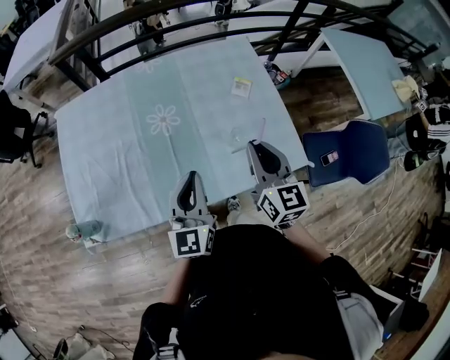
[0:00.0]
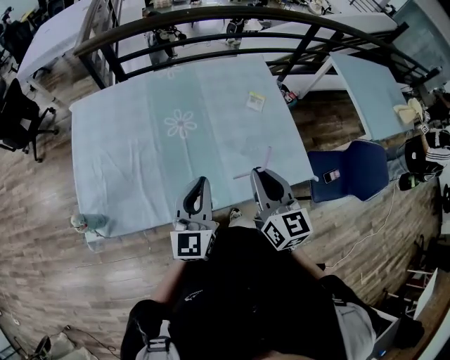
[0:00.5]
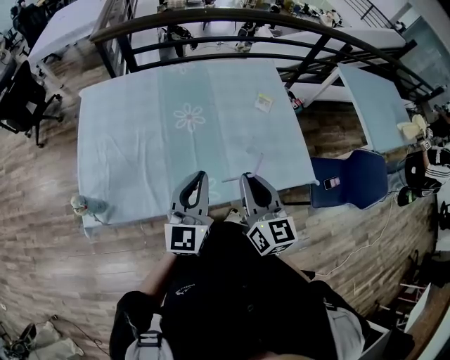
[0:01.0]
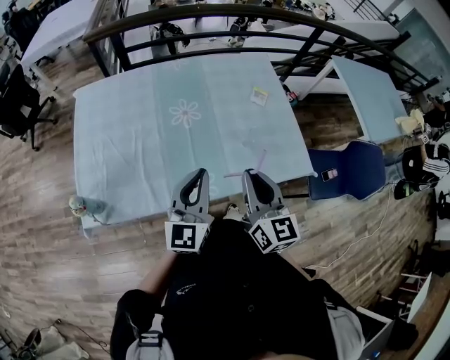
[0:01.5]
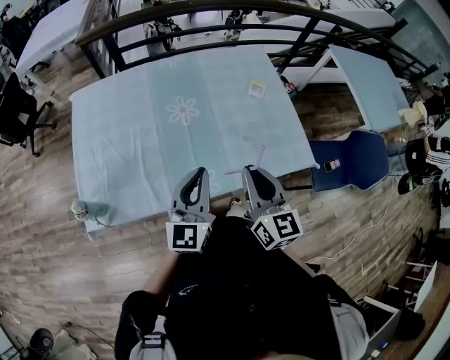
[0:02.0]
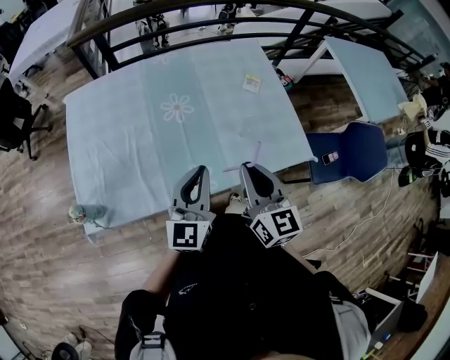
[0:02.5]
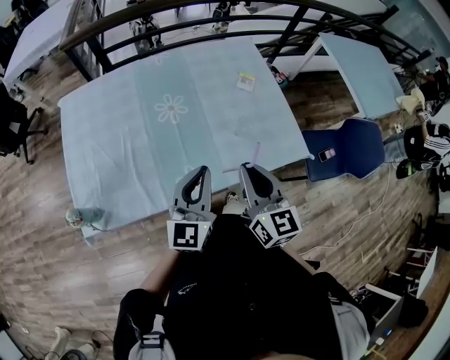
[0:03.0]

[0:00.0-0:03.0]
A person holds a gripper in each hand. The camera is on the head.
0:00.0 to 0:01.5: The left gripper goes roughly 5 cm to the left and backward; the right gripper is displaced backward and to the left by about 15 cm.
0:01.5 to 0:03.0: There are only small adjustments of the grippers.

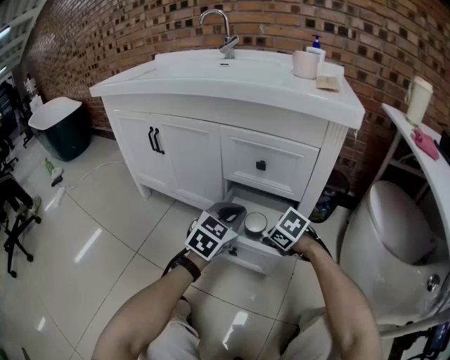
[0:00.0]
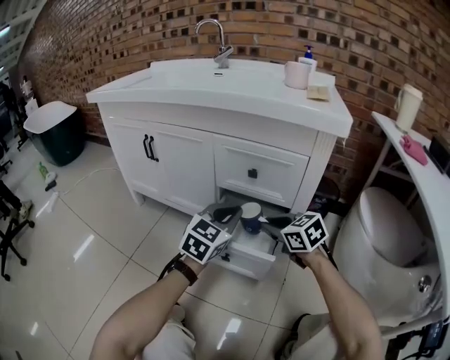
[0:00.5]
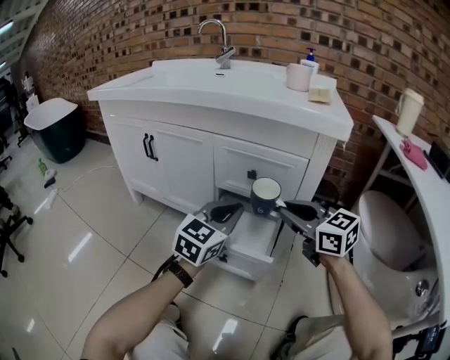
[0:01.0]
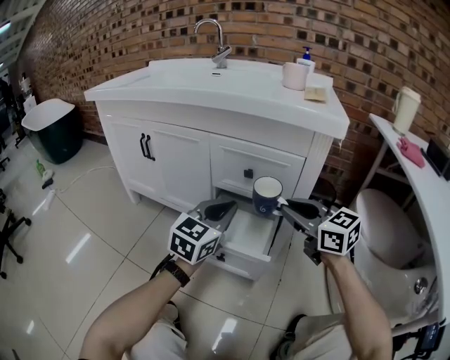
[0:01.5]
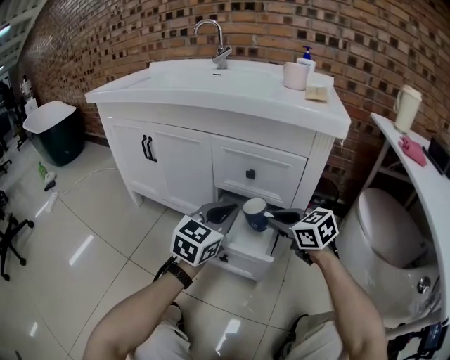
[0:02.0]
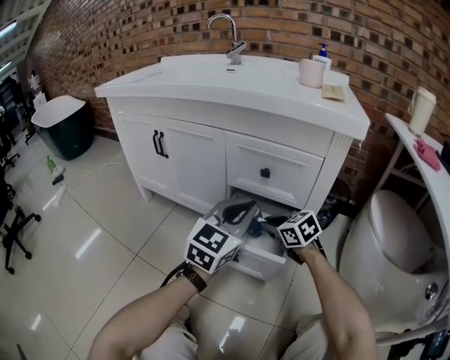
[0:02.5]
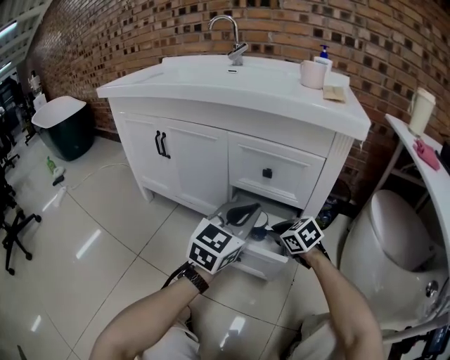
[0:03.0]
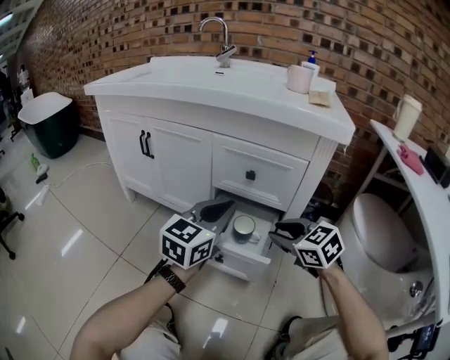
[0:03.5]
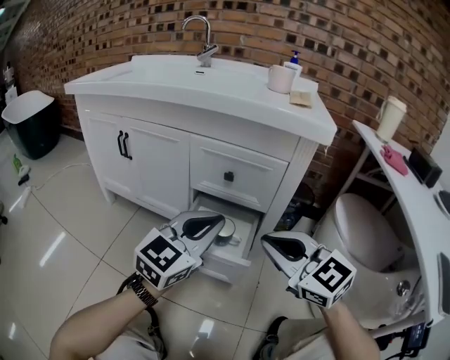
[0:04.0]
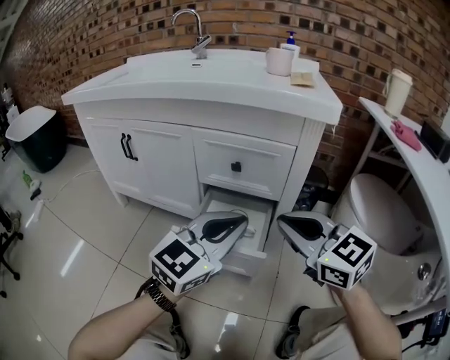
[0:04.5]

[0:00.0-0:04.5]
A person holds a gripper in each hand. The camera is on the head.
0:00.0 to 0:02.0: The right gripper heads upward, covering approximately 15 cm, and tips its fingers upward by approximately 40 degrees, while the left gripper travels upward by approximately 5 cm.
0:02.0 to 0:04.5: The right gripper travels upward and backward by about 15 cm. Meanwhile the left gripper travels backward and upward by approximately 10 cm.

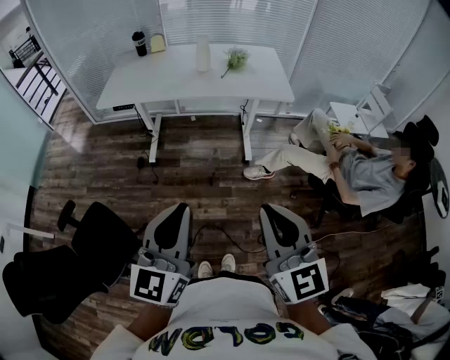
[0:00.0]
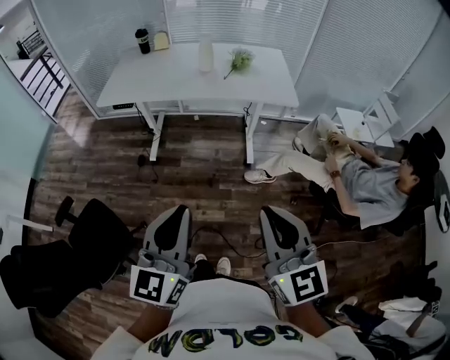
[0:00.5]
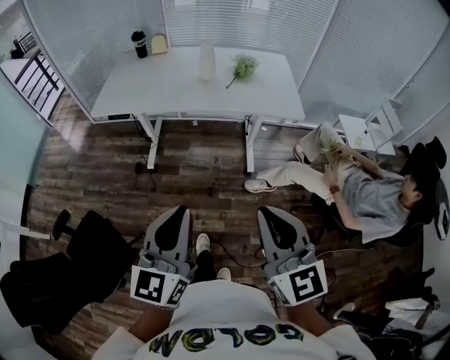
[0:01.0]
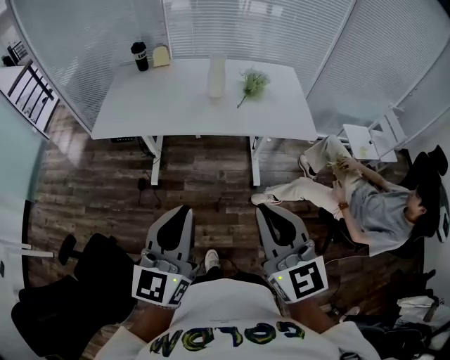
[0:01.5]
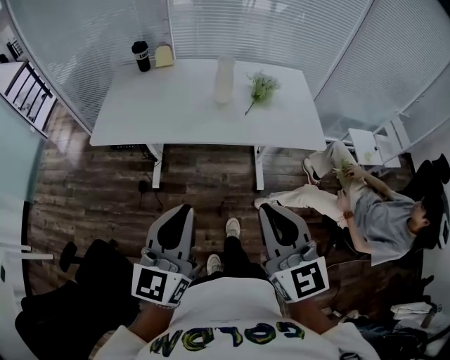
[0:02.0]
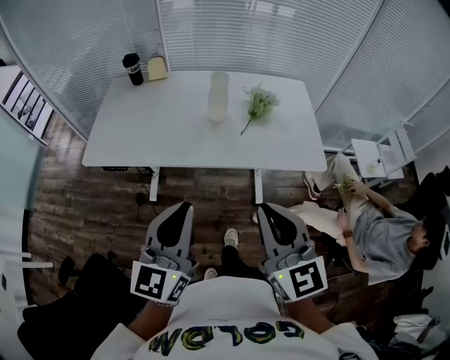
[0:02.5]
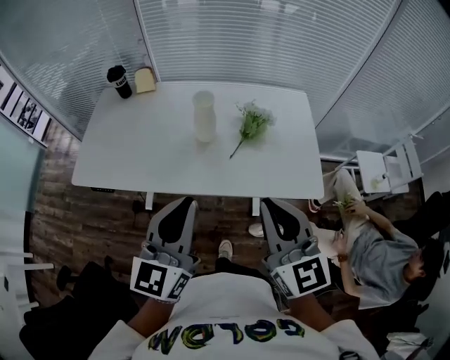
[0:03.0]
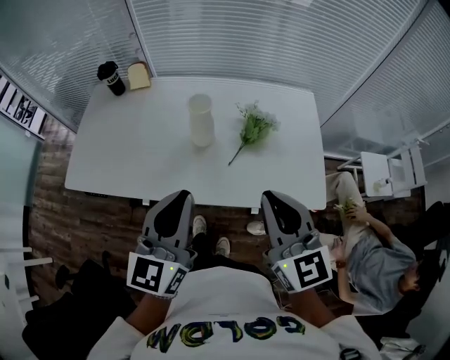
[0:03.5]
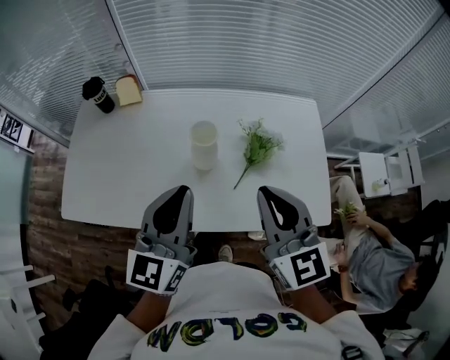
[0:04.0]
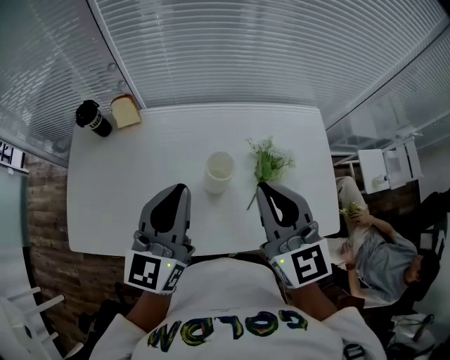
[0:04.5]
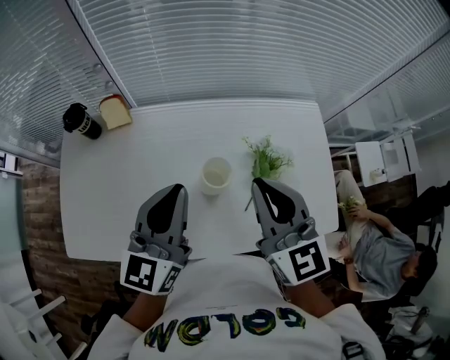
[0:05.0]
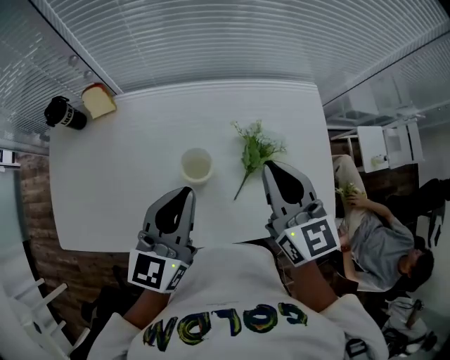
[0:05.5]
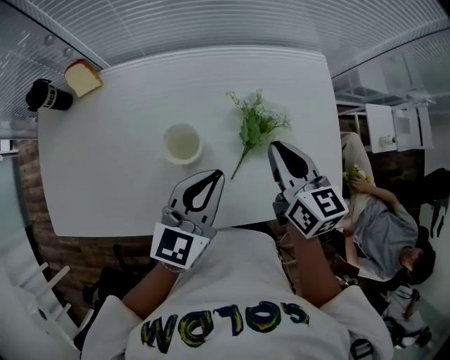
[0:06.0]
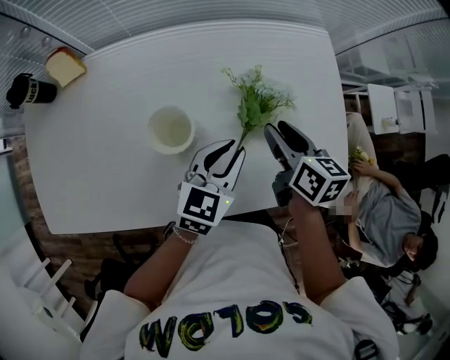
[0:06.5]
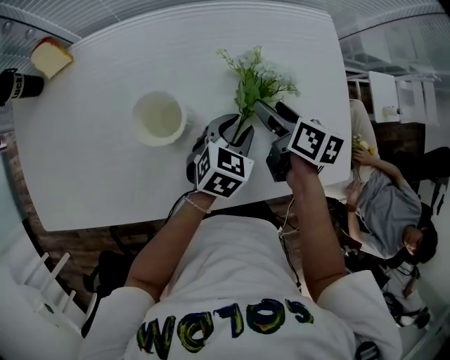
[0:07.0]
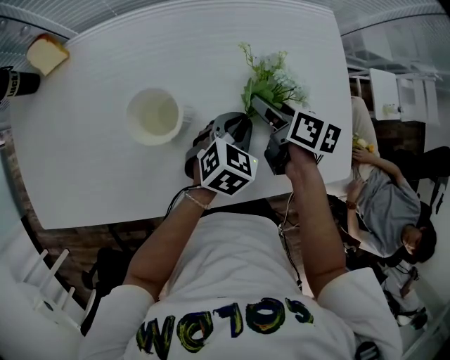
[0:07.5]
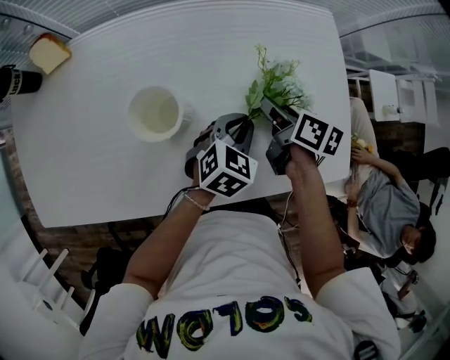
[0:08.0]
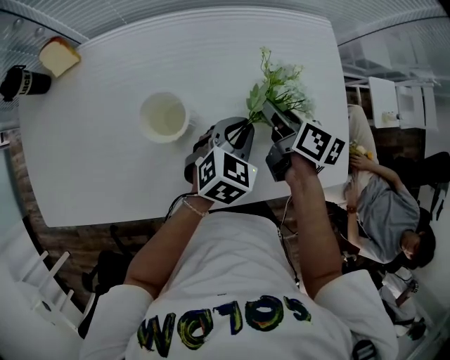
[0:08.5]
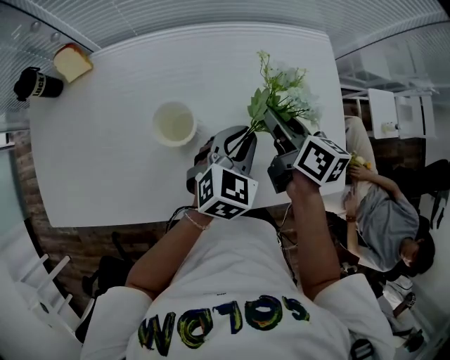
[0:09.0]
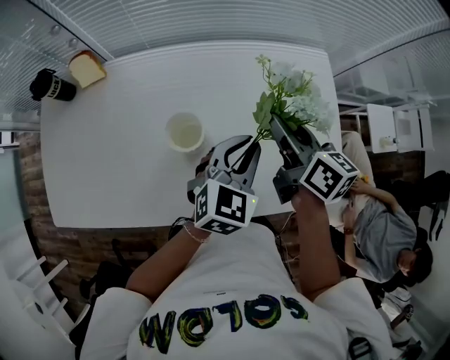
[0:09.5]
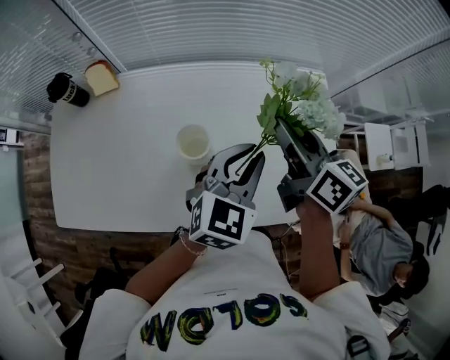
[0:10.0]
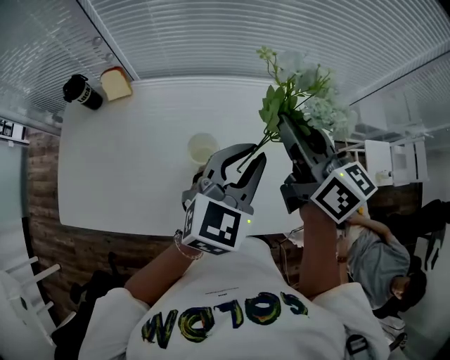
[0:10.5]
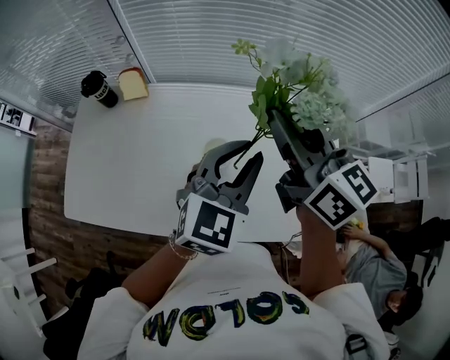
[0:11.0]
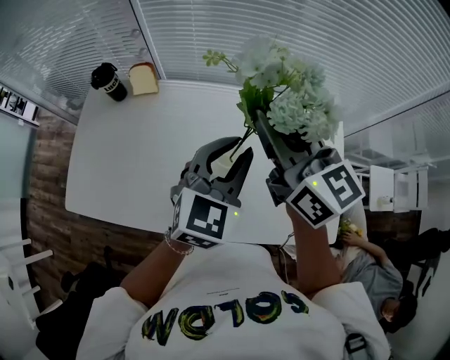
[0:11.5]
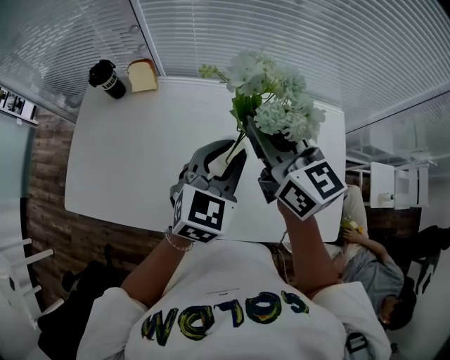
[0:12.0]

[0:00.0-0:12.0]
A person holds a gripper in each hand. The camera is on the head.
0:00.0 to 0:02.0: Both grippers move forward, roughly 35 cm.
0:02.0 to 0:04.0: Both grippers are carried forward, some 50 cm.
0:04.0 to 0:06.0: The left gripper heads downward, forward and to the right, covering about 20 cm, and changes its angle by some 30 degrees; the right gripper is displaced downward and forward by approximately 25 cm, and rotates some 30 degrees.
0:06.0 to 0:08.0: The right gripper moves downward, about 15 cm, changes its angle by approximately 30 degrees, and opens its fingers. Meanwhile the left gripper moves downward and to the right, some 20 cm, turns by about 30 degrees, and opens, then closes once more.
0:08.0 to 0:10.0: The two grippers go about 25 cm upward. The left gripper rotates some 20 degrees, while the right gripper changes its angle by roughly 30 degrees.
0:10.0 to 0:12.0: The left gripper moves to the left, roughly 15 cm. The right gripper moves to the left and upward, roughly 20 cm, and turns by roughly 30 degrees.

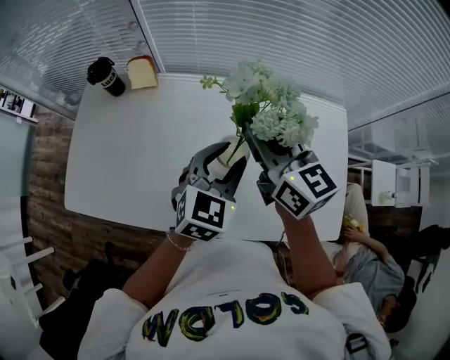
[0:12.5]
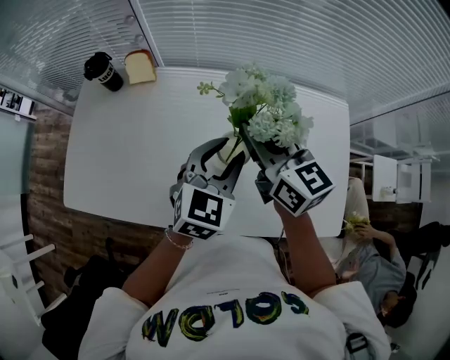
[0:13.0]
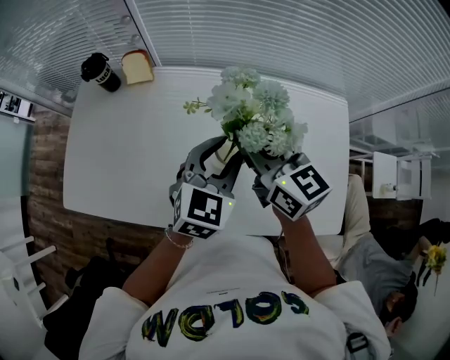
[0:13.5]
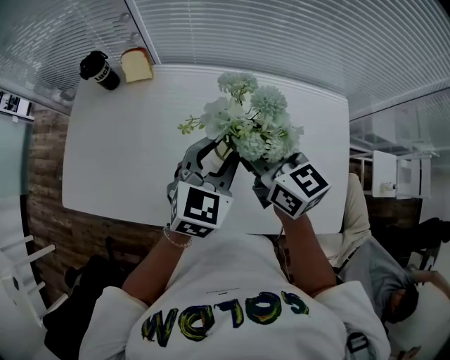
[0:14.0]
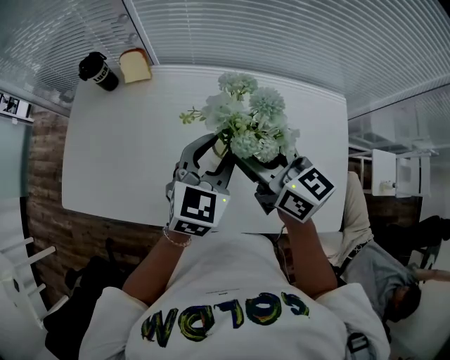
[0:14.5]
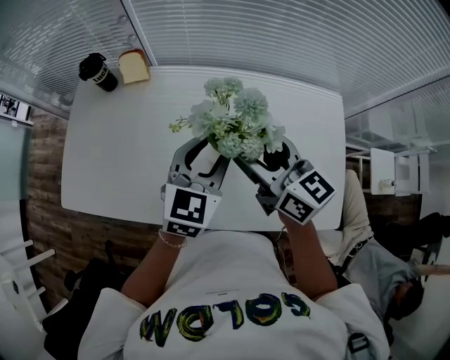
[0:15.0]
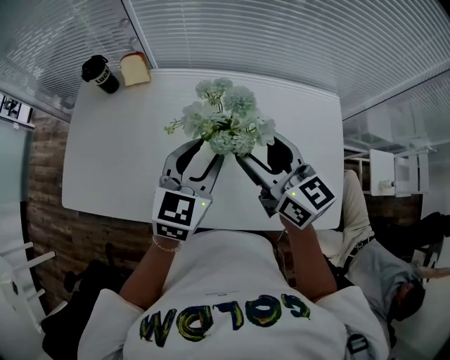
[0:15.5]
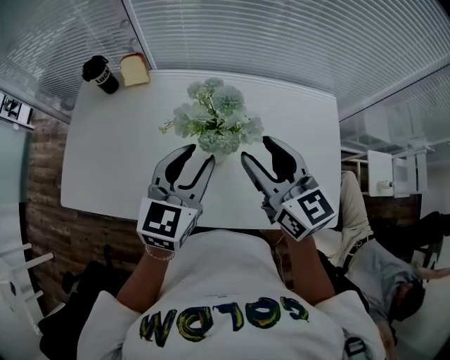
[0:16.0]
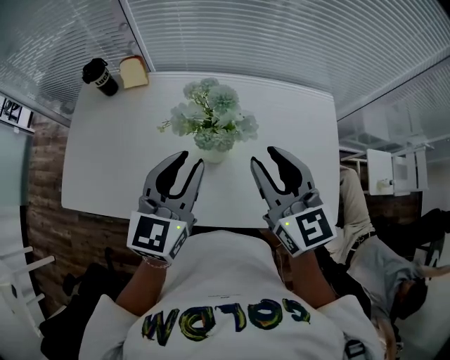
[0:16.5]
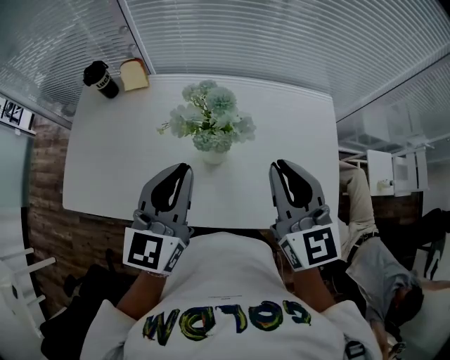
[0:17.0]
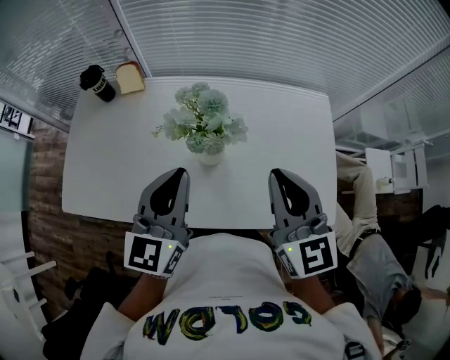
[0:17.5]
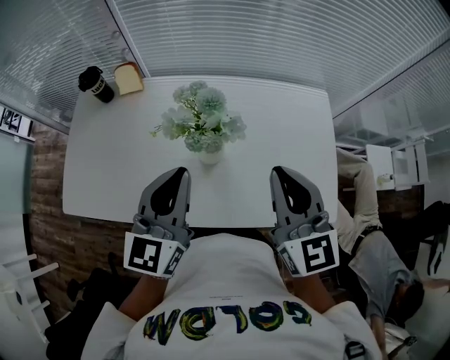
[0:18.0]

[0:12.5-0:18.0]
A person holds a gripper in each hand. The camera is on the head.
0:12.5 to 0:14.5: The right gripper changes place by approximately 5 cm, and opens its fingers.
0:14.5 to 0:16.0: The grippers both shift backward by about 5 cm.
0:16.0 to 0:18.0: The left gripper is displaced upward by approximately 5 cm, and closes its fingers; the right gripper moves backward and to the right, some 10 cm, and closes its fingers.

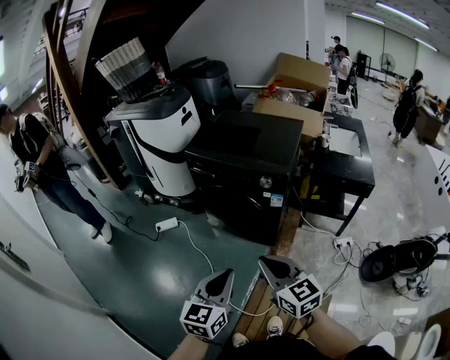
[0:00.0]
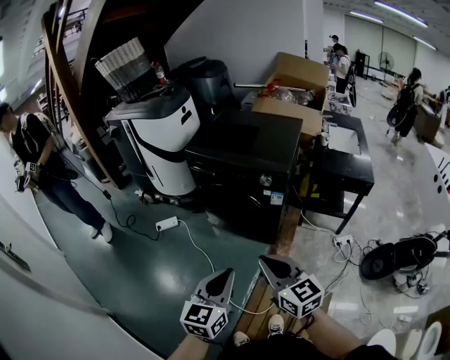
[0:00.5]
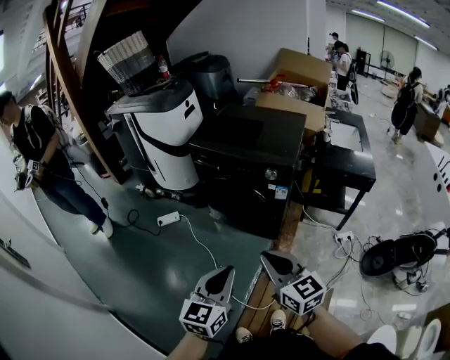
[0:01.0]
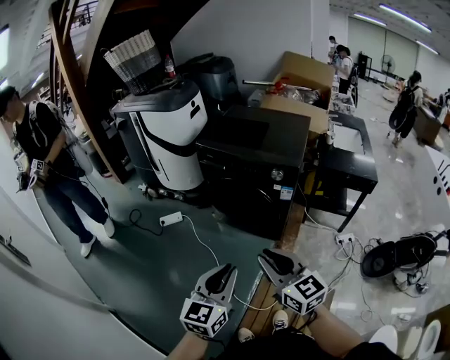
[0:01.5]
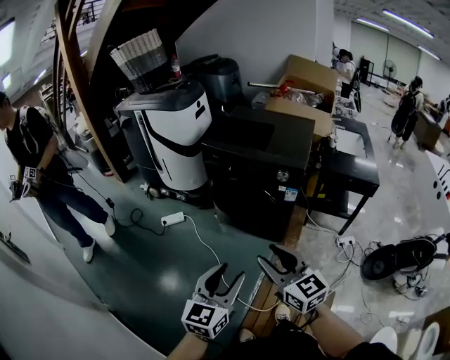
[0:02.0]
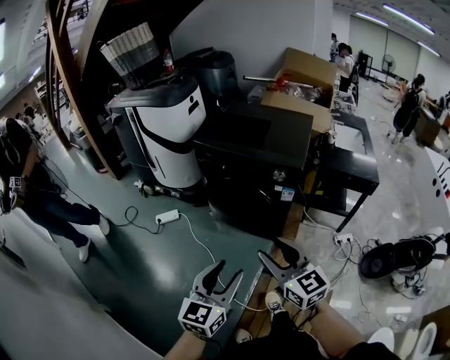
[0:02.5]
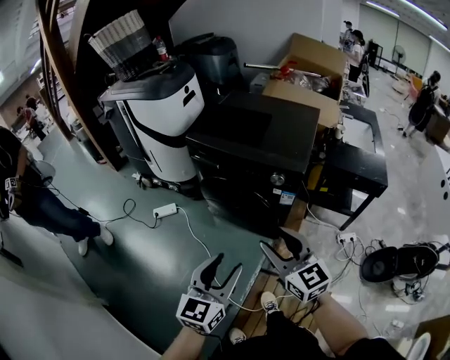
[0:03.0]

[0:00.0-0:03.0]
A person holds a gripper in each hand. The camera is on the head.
0:00.0 to 0:01.5: The grippers both shift to the left by some 5 cm.
0:01.5 to 0:03.0: The right gripper heads forward and to the right, covering roughly 15 cm, and opens up. Meanwhile the left gripper is displaced forward by about 15 cm, and opens up.
